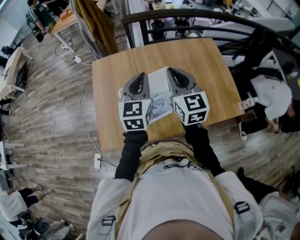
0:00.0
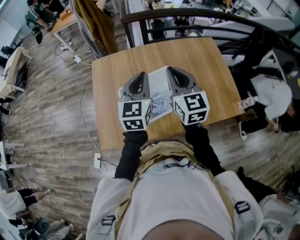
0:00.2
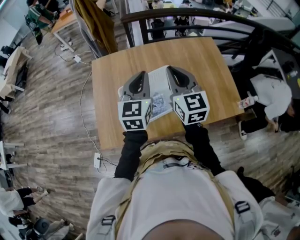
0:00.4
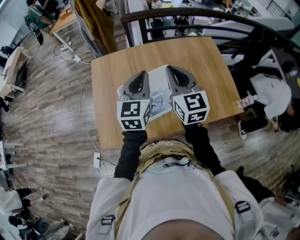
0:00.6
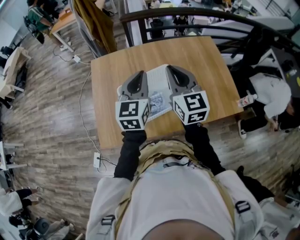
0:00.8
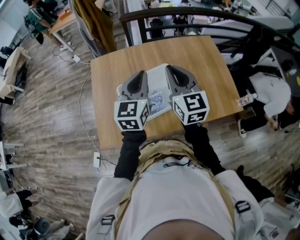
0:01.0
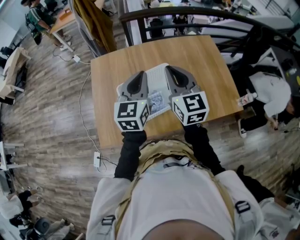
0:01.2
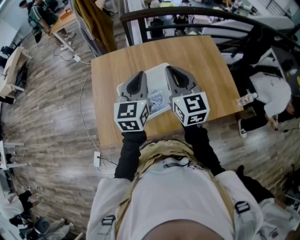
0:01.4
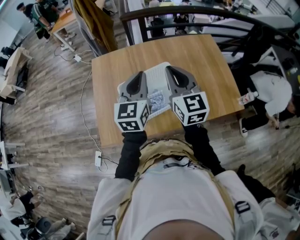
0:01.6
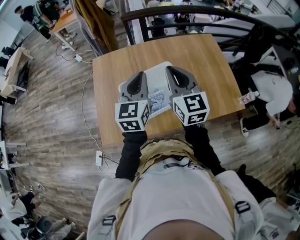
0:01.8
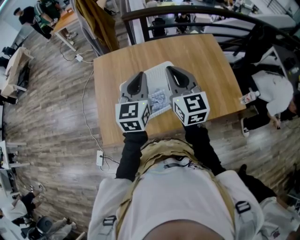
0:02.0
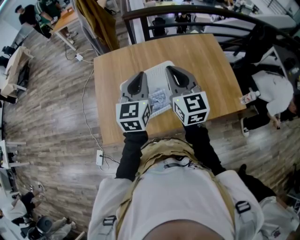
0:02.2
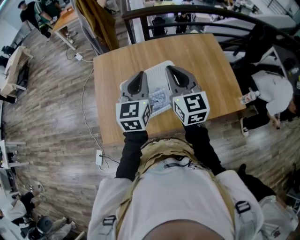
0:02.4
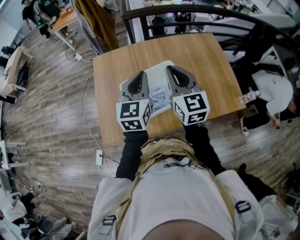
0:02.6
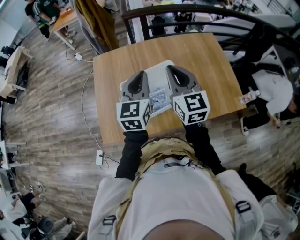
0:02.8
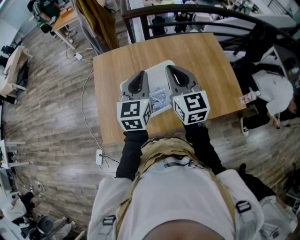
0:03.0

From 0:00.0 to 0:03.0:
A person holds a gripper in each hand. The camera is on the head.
From 0:00.0 to 0:03.0: The grippers make only small movements.

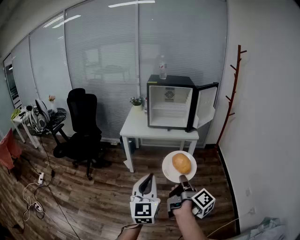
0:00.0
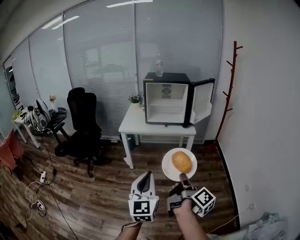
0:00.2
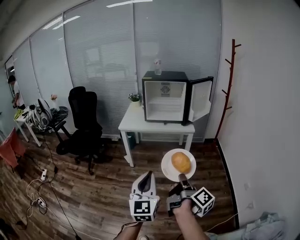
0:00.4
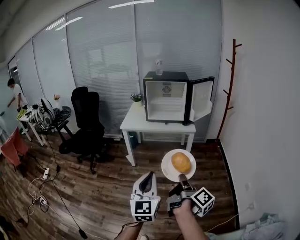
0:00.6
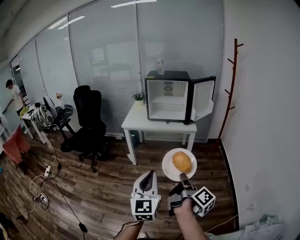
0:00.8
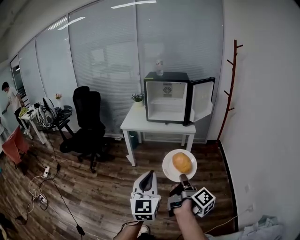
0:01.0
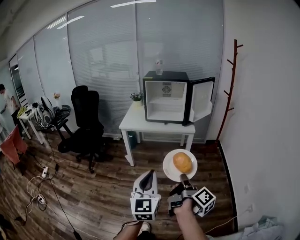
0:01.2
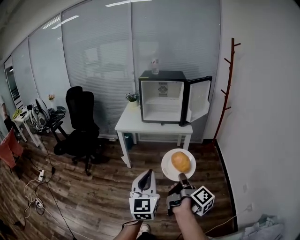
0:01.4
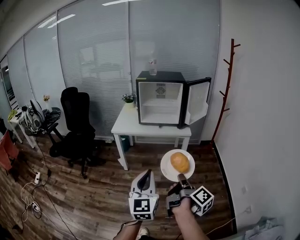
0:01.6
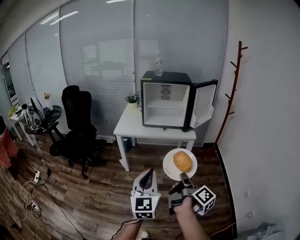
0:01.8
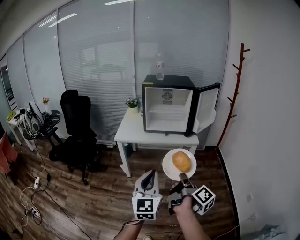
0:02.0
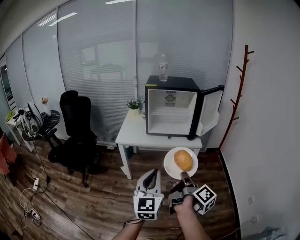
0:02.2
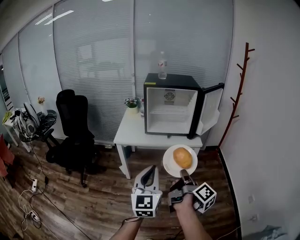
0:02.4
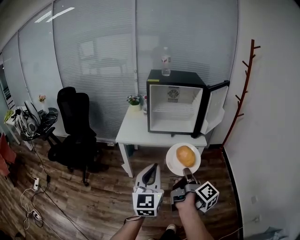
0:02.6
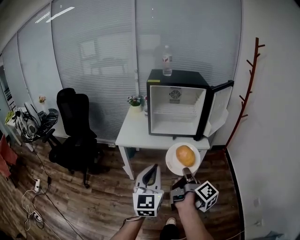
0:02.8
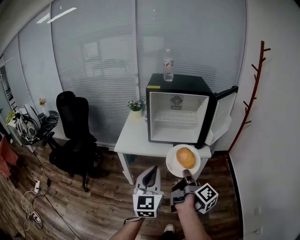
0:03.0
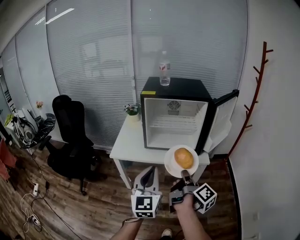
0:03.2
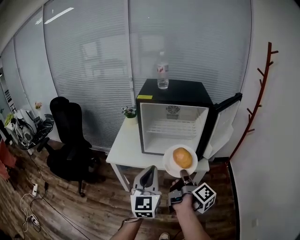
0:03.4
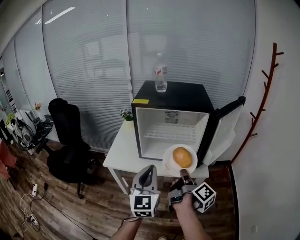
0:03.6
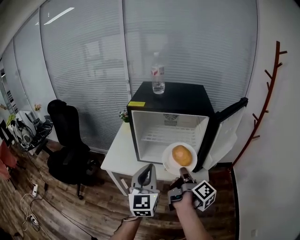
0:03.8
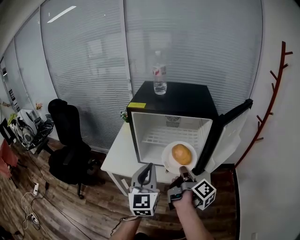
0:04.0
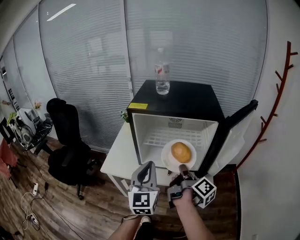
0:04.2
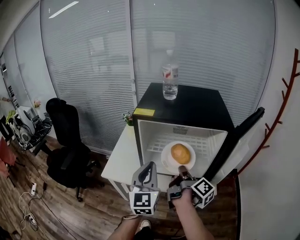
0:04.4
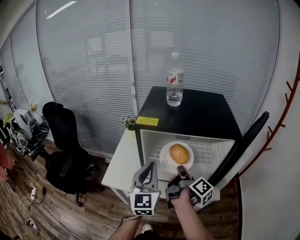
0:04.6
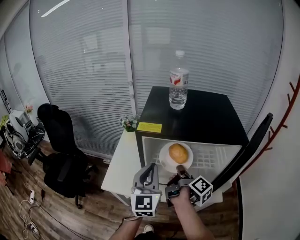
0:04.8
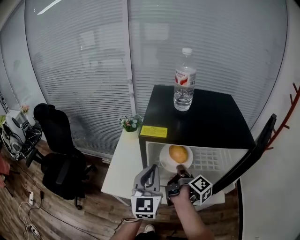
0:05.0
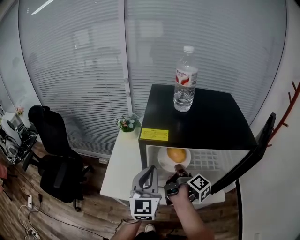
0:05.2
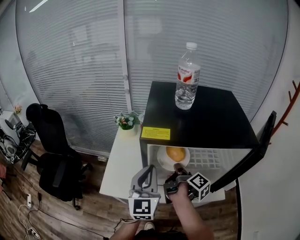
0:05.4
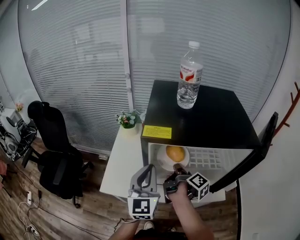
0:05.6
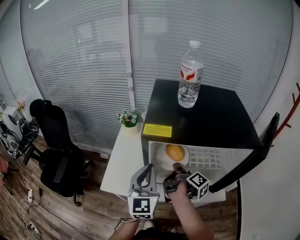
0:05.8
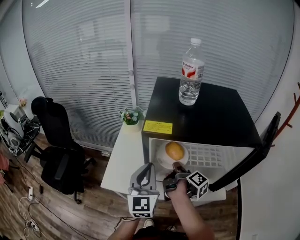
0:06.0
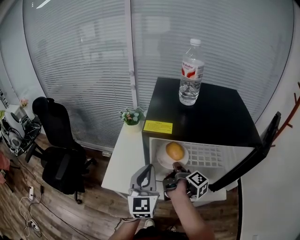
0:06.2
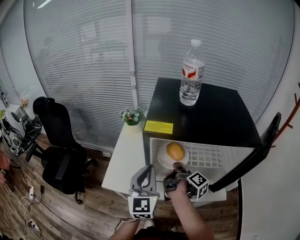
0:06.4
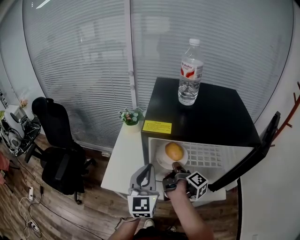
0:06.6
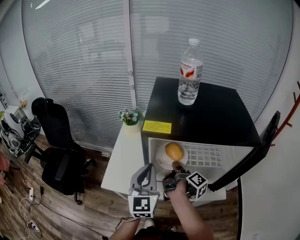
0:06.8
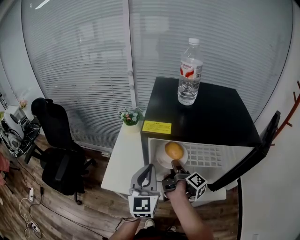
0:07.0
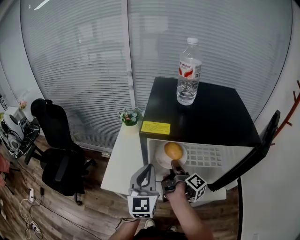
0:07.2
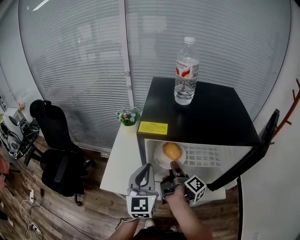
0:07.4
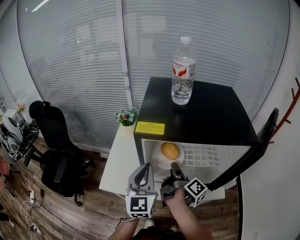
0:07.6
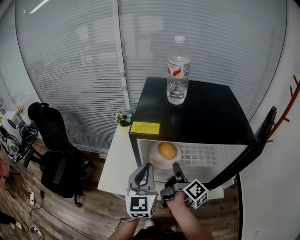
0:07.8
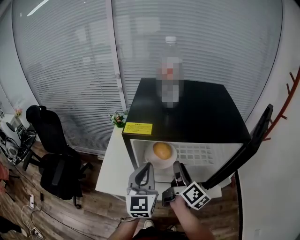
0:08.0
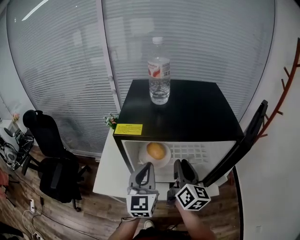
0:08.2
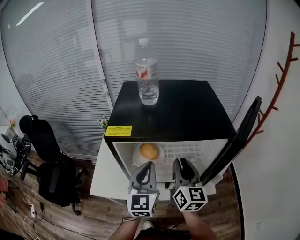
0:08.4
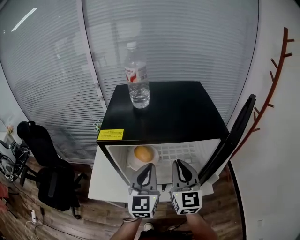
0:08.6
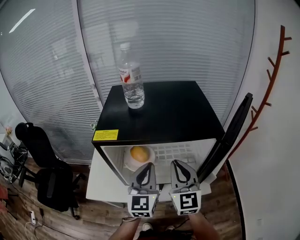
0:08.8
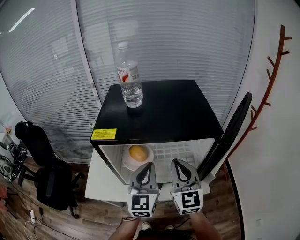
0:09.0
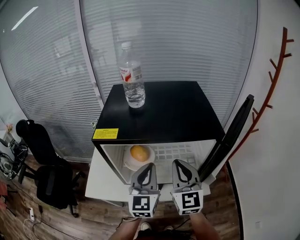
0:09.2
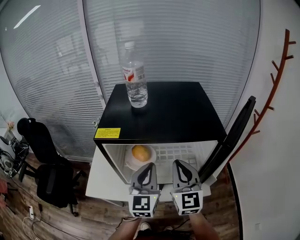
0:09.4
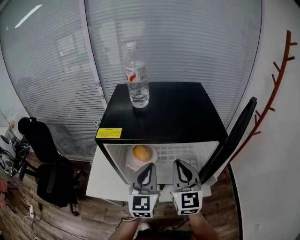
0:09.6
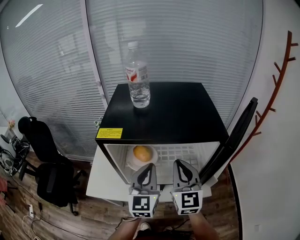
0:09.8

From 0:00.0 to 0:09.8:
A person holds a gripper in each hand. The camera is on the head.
From 0:00.0 to 0:01.4: The left gripper moves approximately 10 cm.
From 0:01.4 to 0:02.8: The left gripper shifts by some 30 cm.
From 0:02.8 to 0:04.2: The left gripper shifts by some 35 cm.
From 0:04.2 to 0:05.6: The left gripper changes place by some 20 cm.
From 0:07.0 to 0:08.4: The left gripper changes place by some 10 cm.

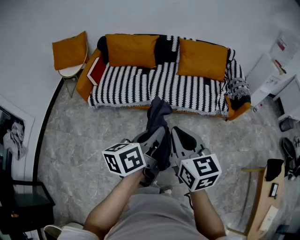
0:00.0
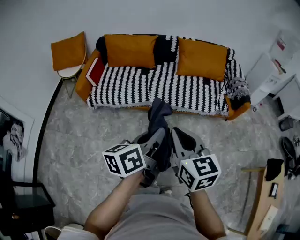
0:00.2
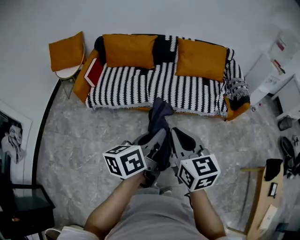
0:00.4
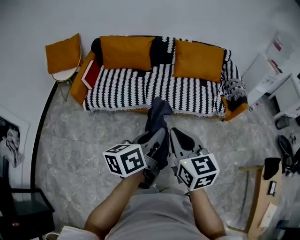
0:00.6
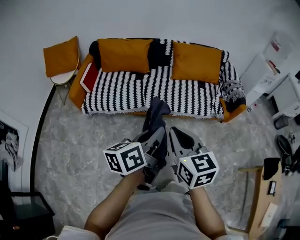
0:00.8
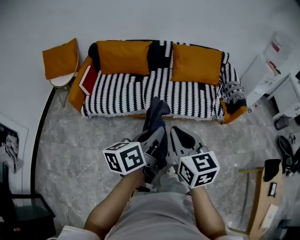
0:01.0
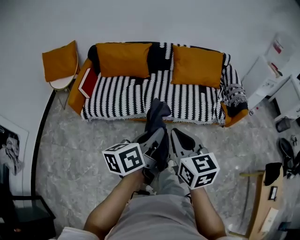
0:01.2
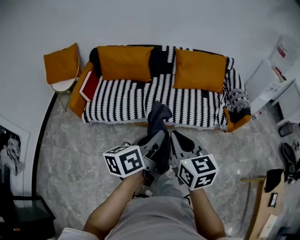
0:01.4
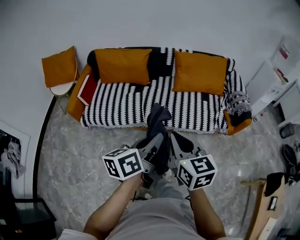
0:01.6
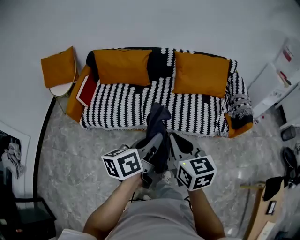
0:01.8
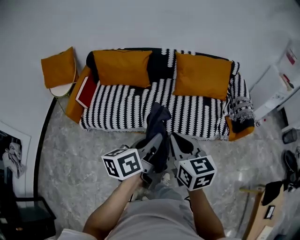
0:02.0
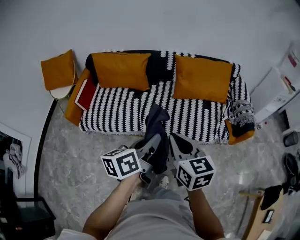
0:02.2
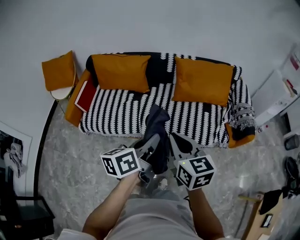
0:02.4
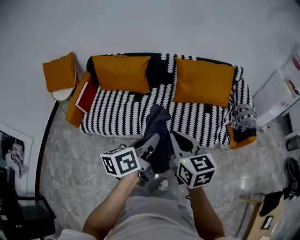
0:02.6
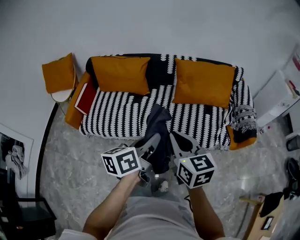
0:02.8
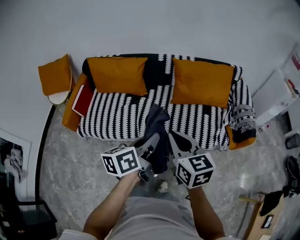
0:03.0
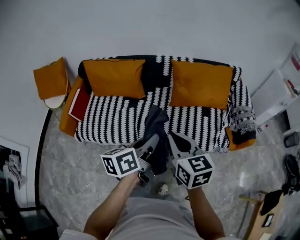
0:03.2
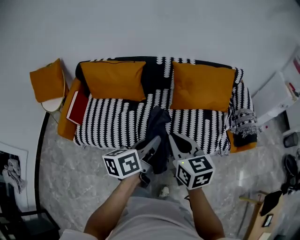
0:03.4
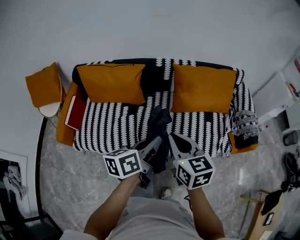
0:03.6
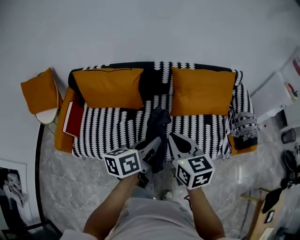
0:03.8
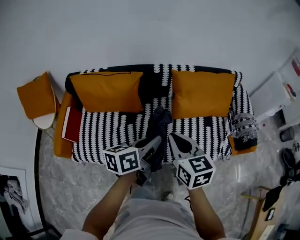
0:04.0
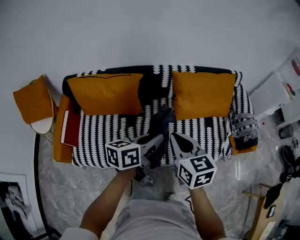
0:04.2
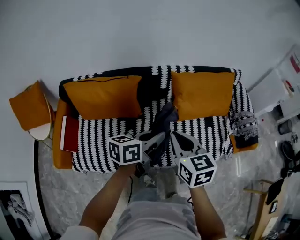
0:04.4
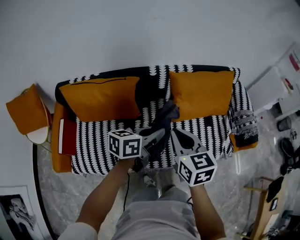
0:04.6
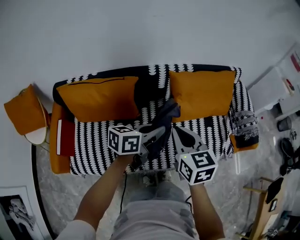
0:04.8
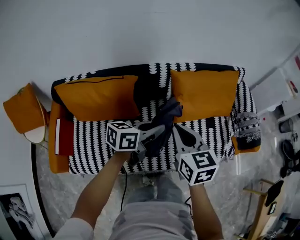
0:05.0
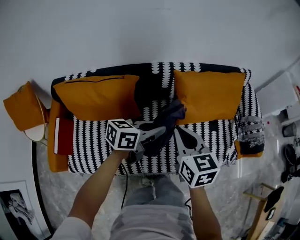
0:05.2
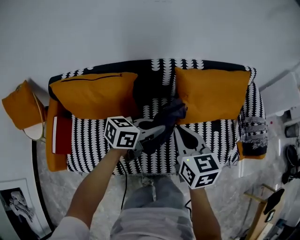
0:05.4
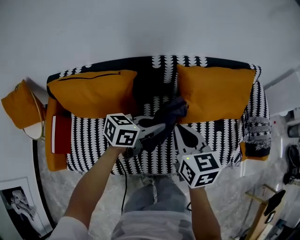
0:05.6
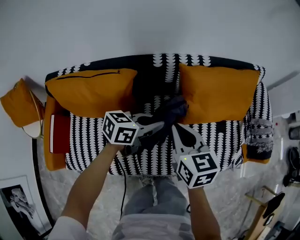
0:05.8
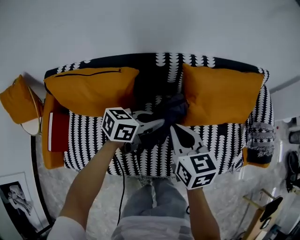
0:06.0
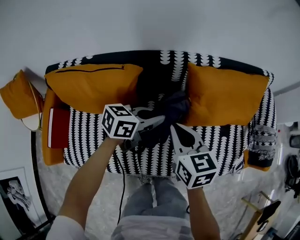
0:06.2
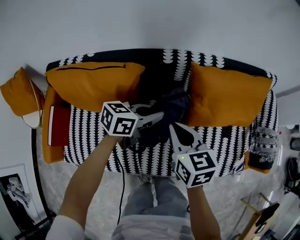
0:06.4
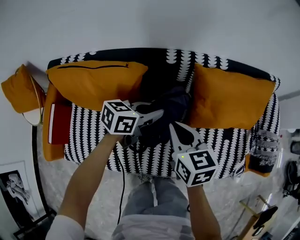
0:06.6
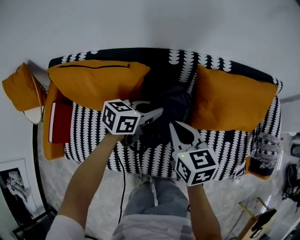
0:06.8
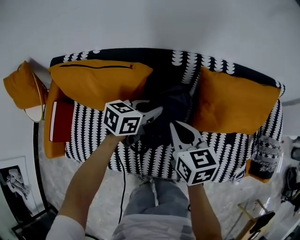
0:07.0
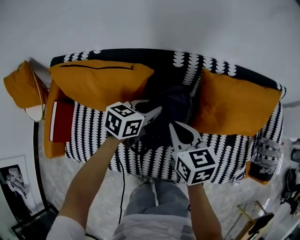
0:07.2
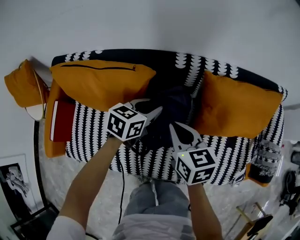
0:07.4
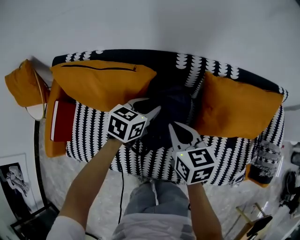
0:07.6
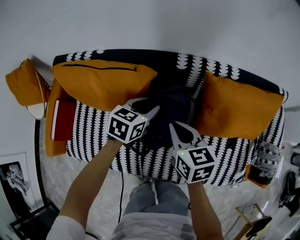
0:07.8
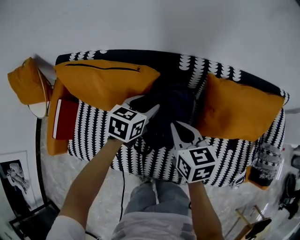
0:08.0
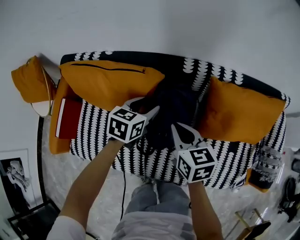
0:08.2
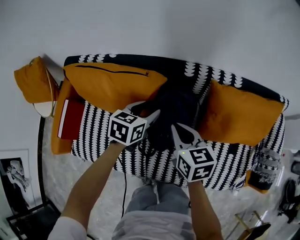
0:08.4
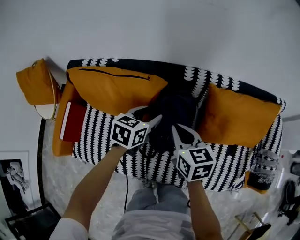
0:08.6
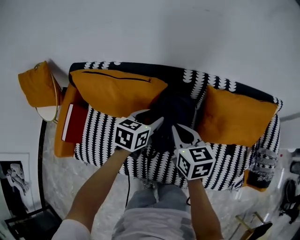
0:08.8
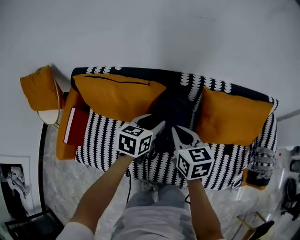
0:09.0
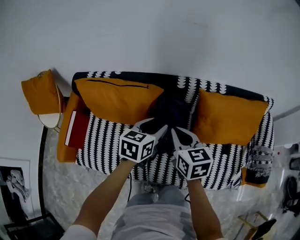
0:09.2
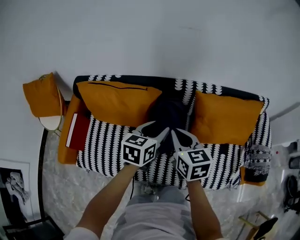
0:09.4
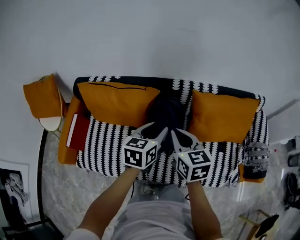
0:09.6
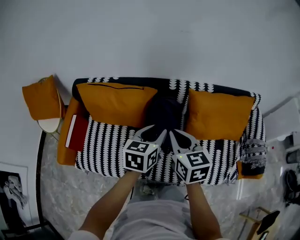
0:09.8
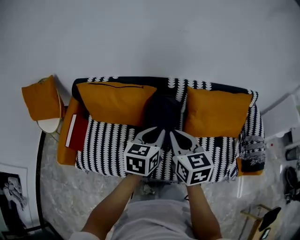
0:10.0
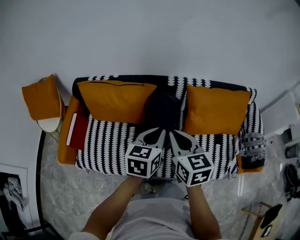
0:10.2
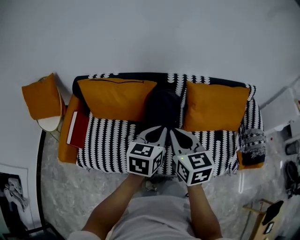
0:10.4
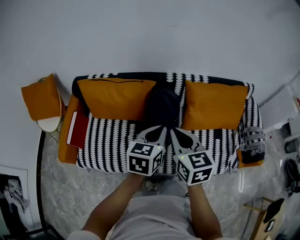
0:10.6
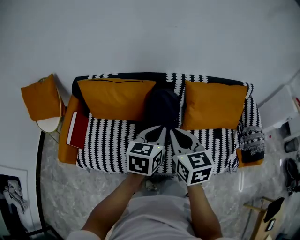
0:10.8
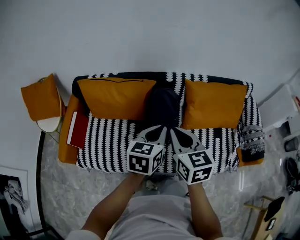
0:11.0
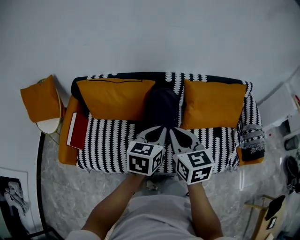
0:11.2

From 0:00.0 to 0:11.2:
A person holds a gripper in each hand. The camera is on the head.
From 0:00.0 to 0:01.6: Both grippers move forward, some 15 cm.
From 0:01.6 to 0:03.2: Both grippers move forward, some 20 cm.
From 0:03.2 to 0:04.8: The right gripper heads forward and to the left, covering some 25 cm. Meanwhile the left gripper goes some 25 cm forward, and changes its angle by some 30 degrees.
From 0:04.8 to 0:06.4: Both grippers travel together downward, forward and to the left, approximately 20 cm.
From 0:06.4 to 0:08.0: The right gripper moves approximately 5 cm. The left gripper goes about 10 cm to the left and forward, swivels approximately 40 degrees, and opens.
From 0:08.0 to 0:09.6: Both grippers travel together upward and backward, about 20 cm.
From 0:09.6 to 0:11.2: The two grippers go roughly 10 cm backward. The left gripper closes.
